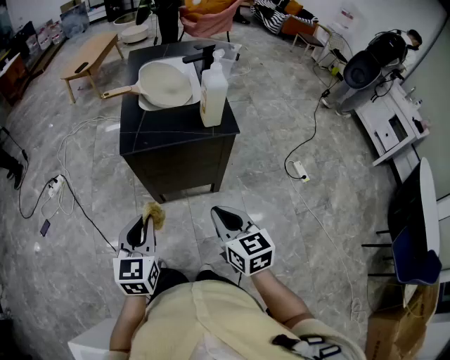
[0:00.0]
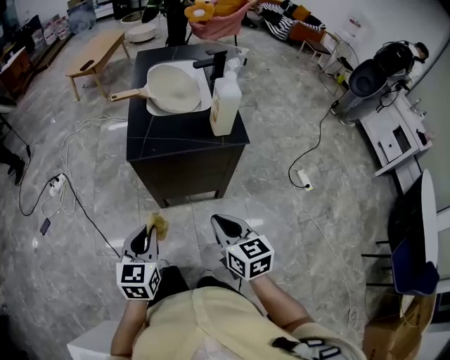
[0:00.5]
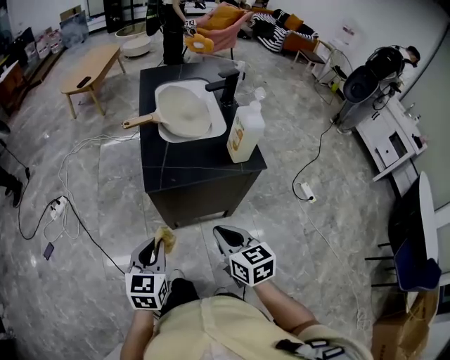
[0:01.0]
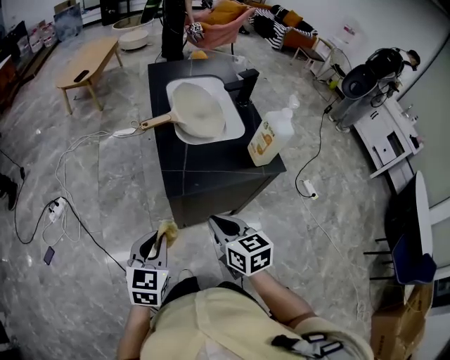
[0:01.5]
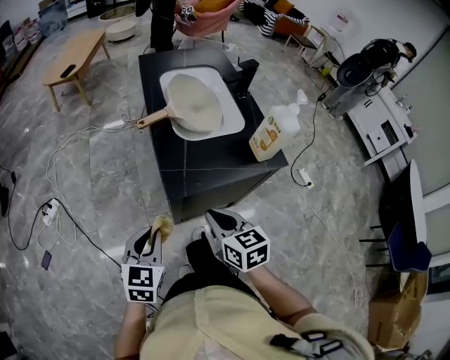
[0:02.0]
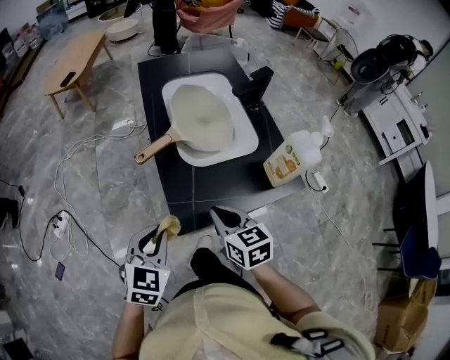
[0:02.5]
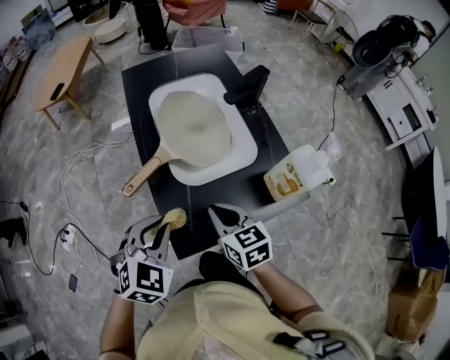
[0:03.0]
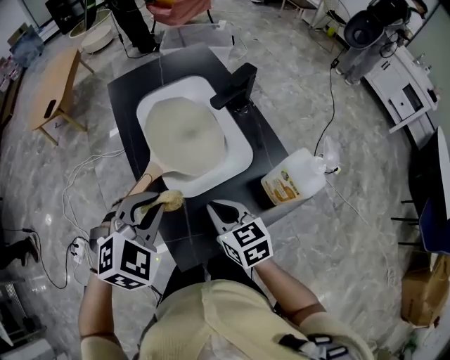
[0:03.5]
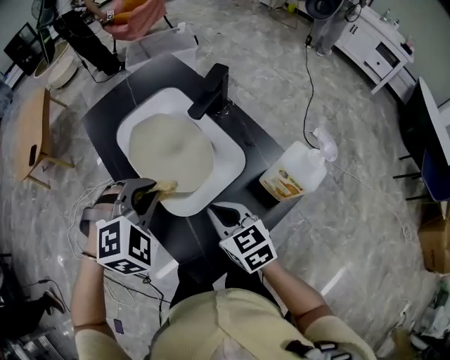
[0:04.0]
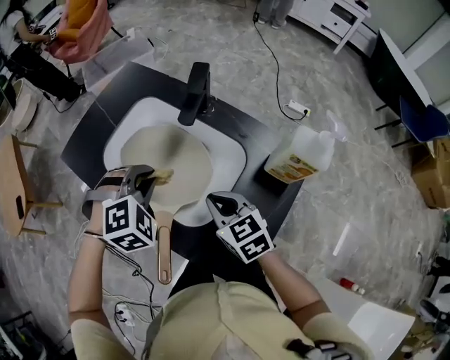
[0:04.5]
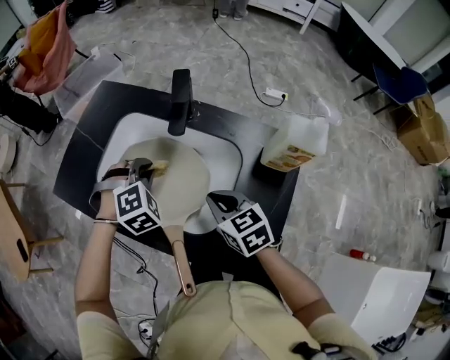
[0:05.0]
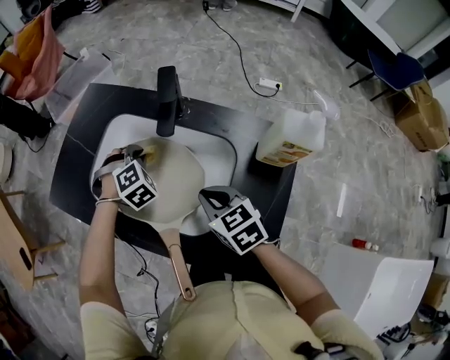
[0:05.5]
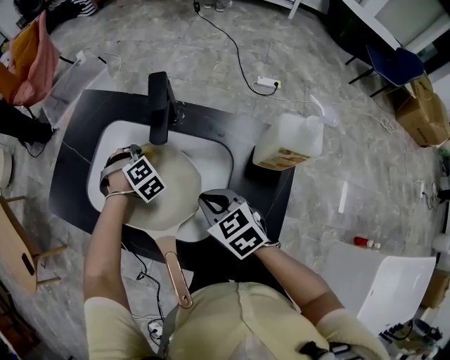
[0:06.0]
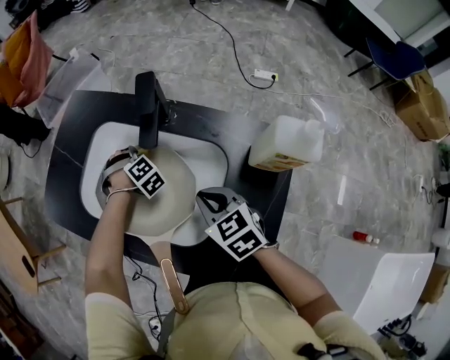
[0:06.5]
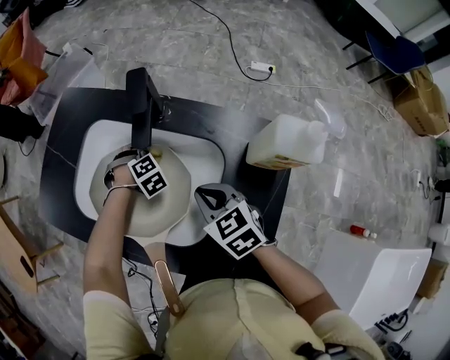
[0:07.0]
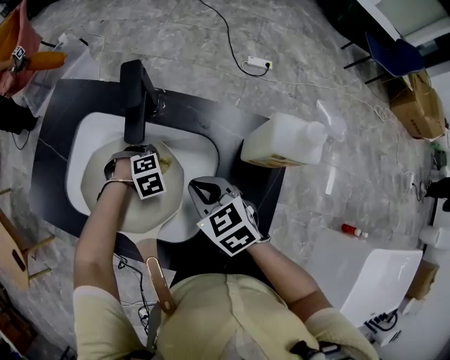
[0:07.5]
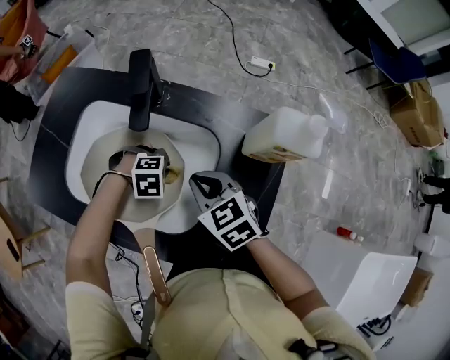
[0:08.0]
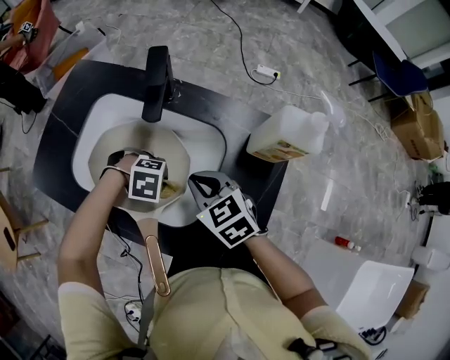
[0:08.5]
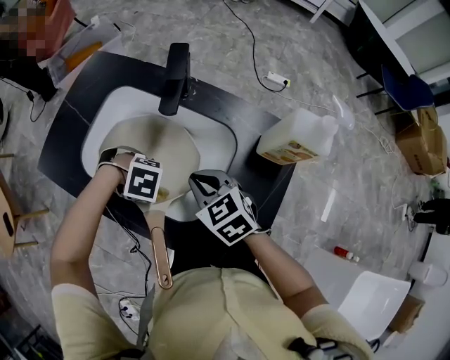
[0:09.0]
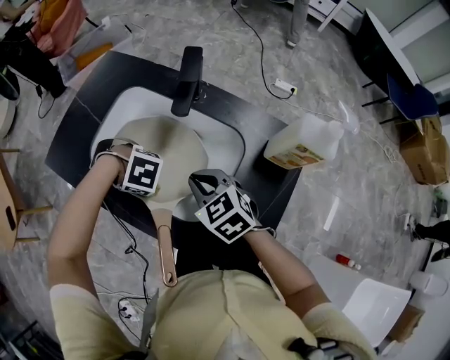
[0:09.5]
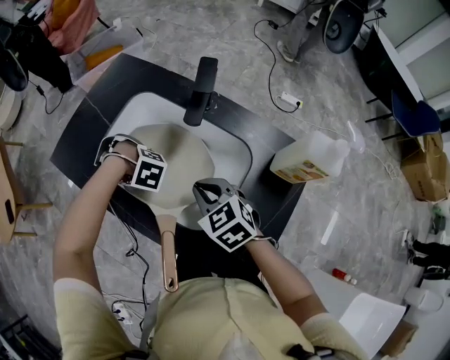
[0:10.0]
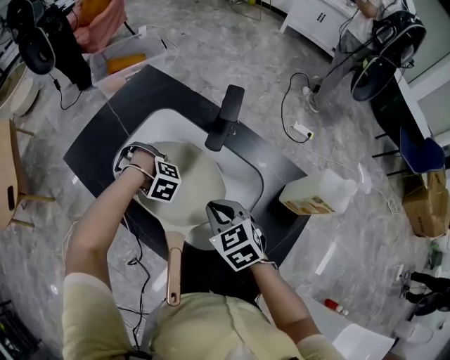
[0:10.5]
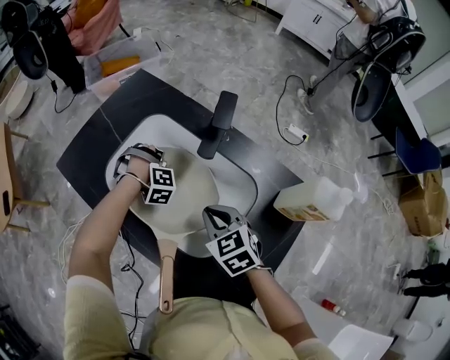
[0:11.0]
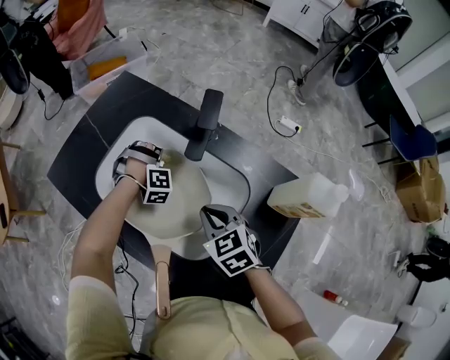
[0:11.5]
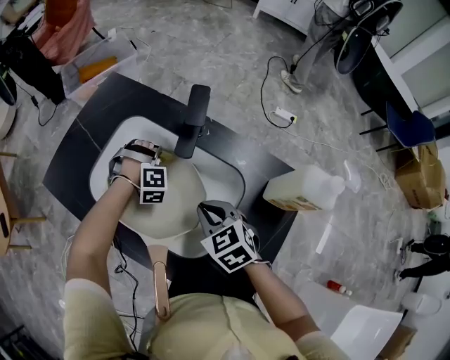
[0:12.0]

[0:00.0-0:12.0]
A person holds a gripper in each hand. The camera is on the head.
0:00.0 to 0:02.0: The right gripper shifts by approximately 30 cm.
0:02.0 to 0:04.0: The right gripper ends up approximately 30 cm from where it was.
0:04.0 to 0:06.0: The right gripper shifts by roughly 10 cm, and changes its angle by some 30 degrees.
0:08.0 to 0:10.0: The right gripper ends up approximately 10 cm from where it was.

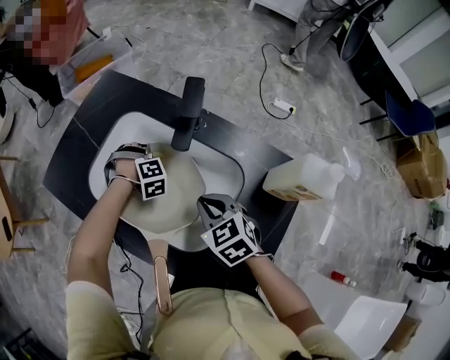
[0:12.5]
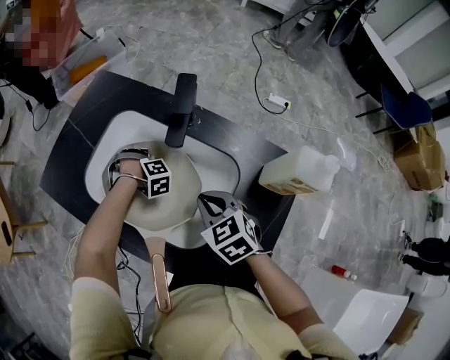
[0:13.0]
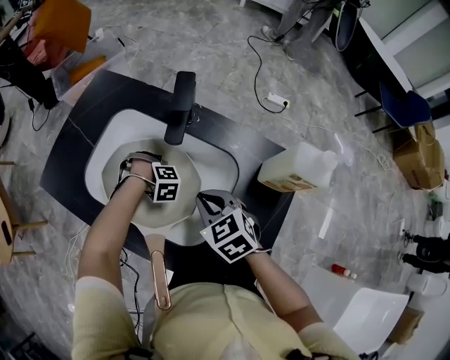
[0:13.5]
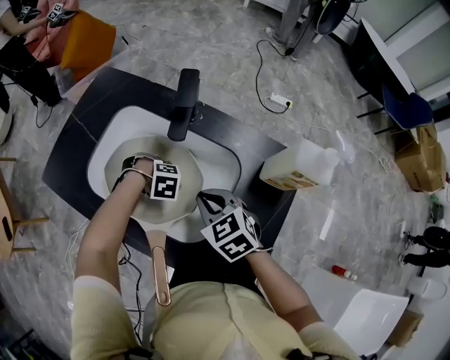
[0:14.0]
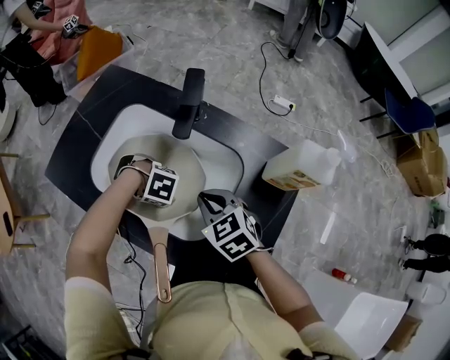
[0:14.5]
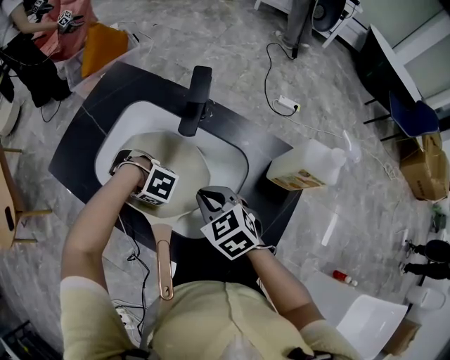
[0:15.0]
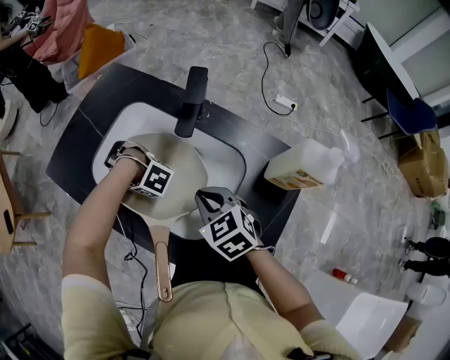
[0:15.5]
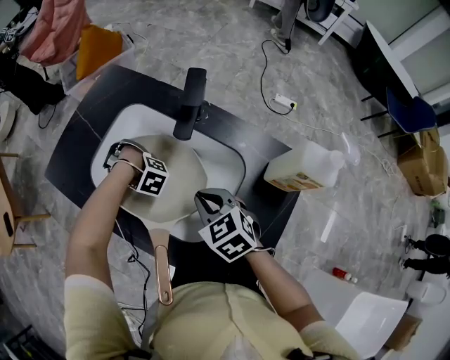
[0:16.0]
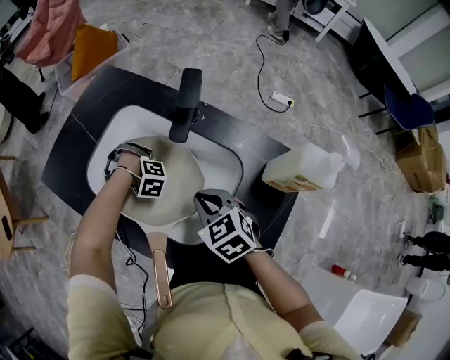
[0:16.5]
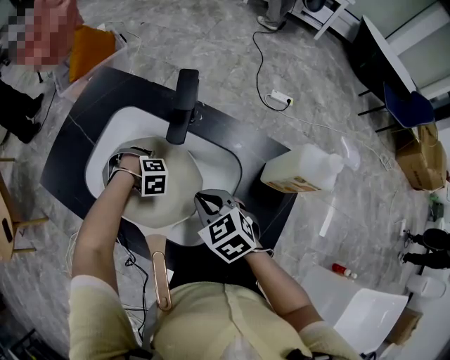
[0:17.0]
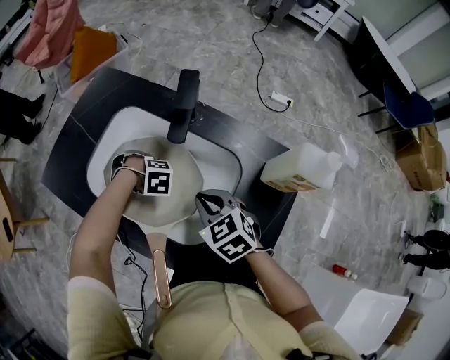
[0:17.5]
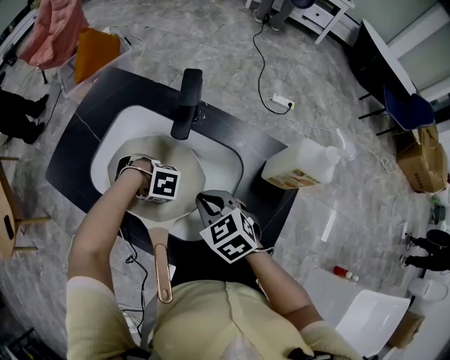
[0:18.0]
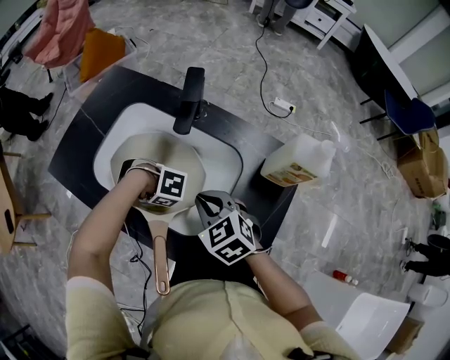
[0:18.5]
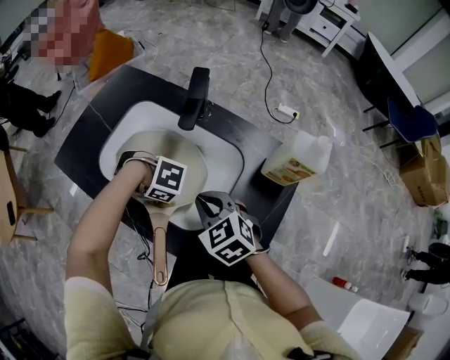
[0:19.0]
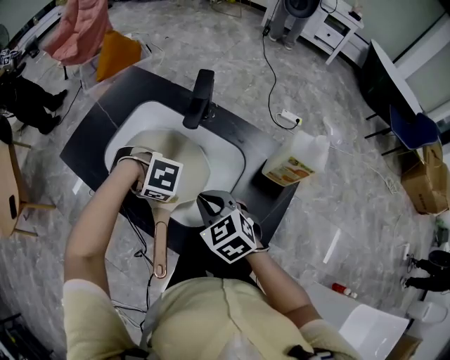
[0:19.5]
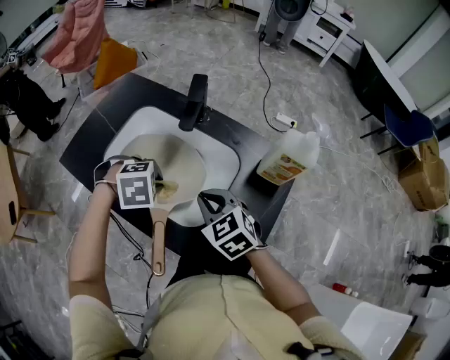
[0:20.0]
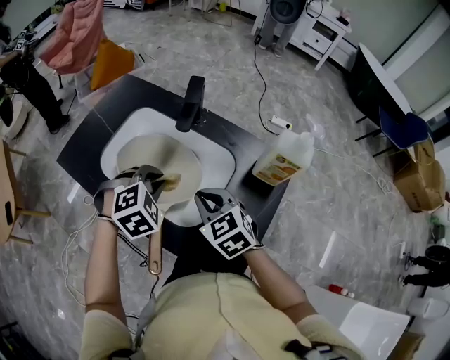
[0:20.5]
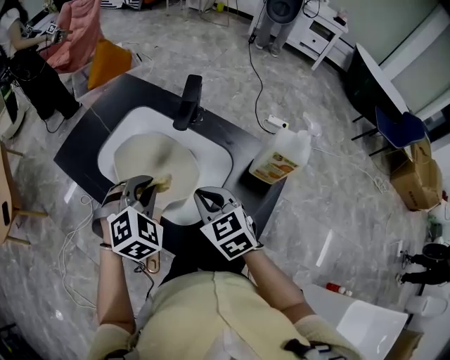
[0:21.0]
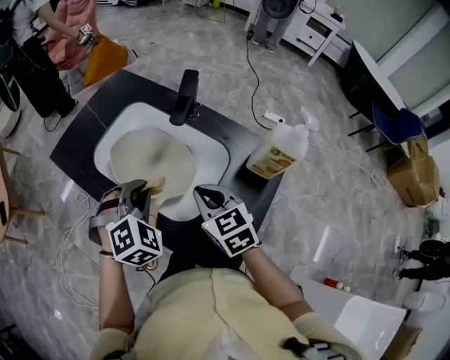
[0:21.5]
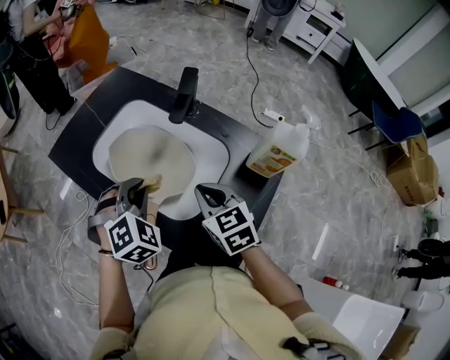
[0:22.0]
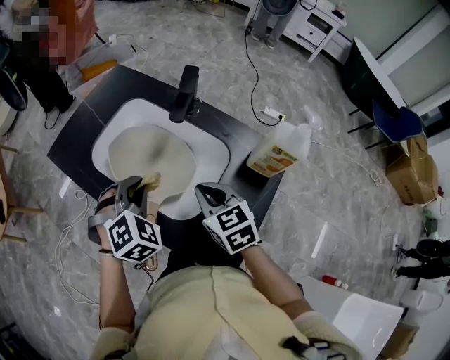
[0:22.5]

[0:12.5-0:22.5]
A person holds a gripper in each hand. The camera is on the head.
0:18.5 to 0:20.5: The right gripper ends up approximately 5 cm from where it was.

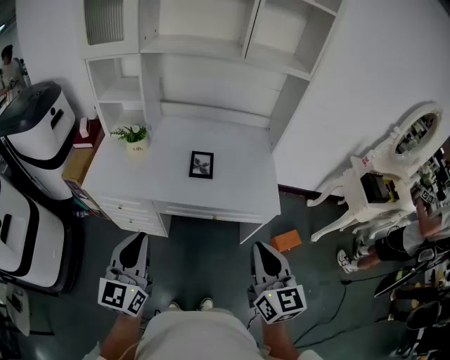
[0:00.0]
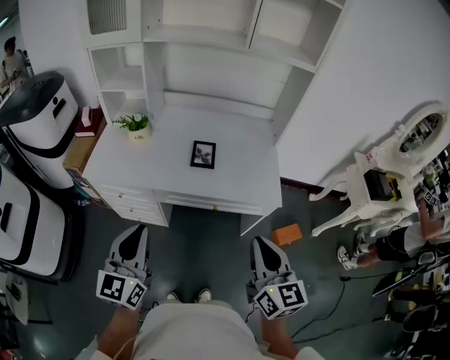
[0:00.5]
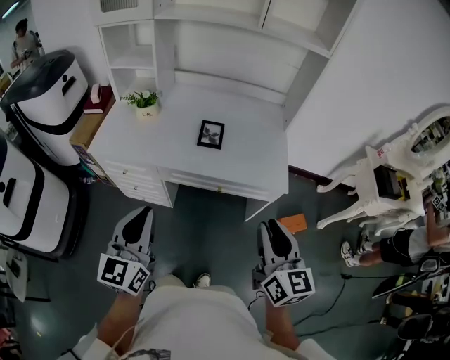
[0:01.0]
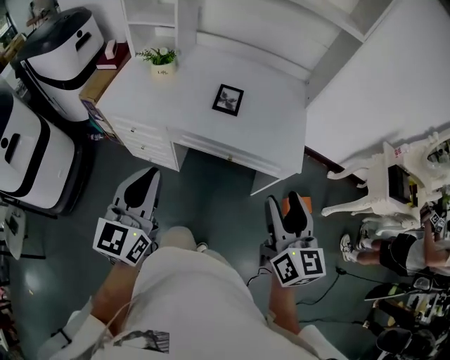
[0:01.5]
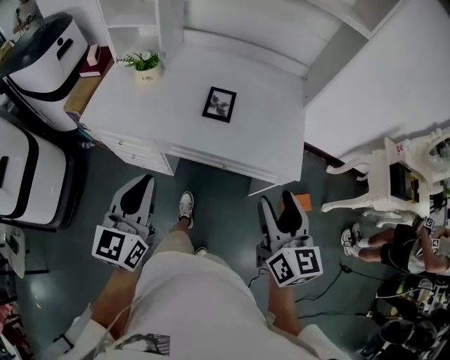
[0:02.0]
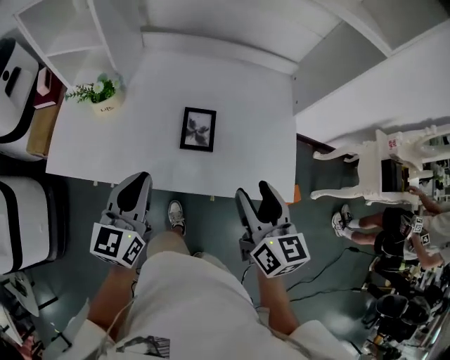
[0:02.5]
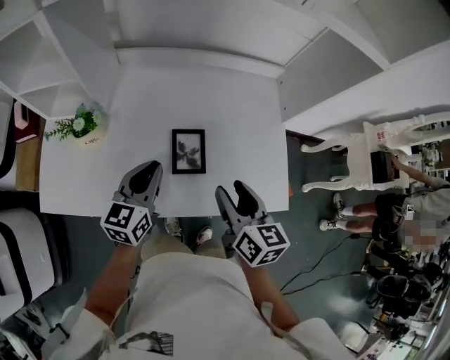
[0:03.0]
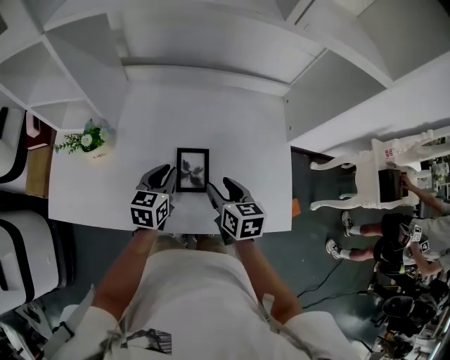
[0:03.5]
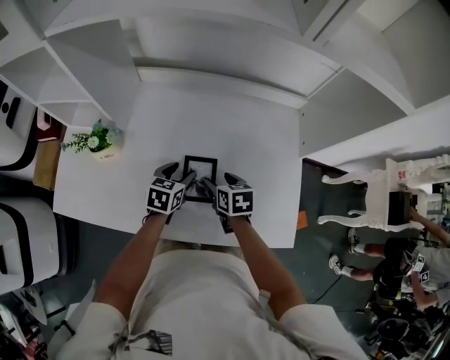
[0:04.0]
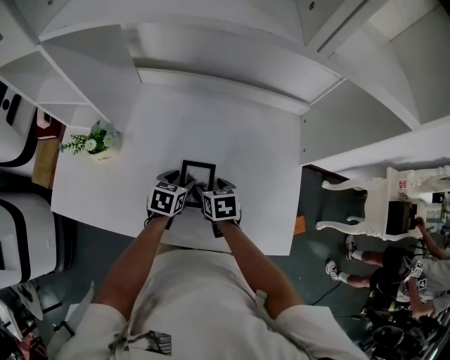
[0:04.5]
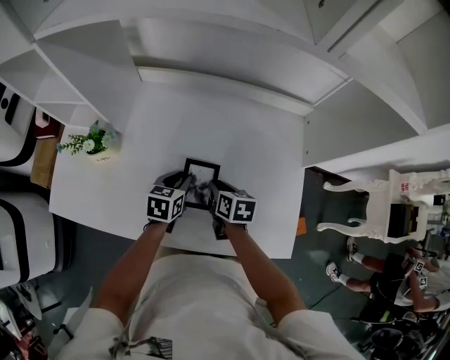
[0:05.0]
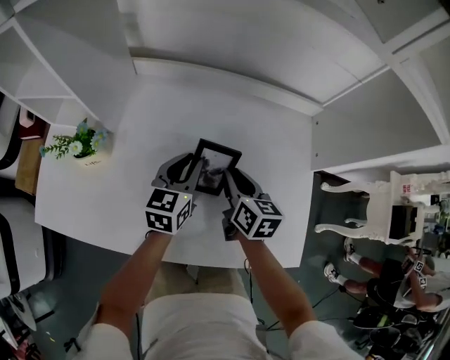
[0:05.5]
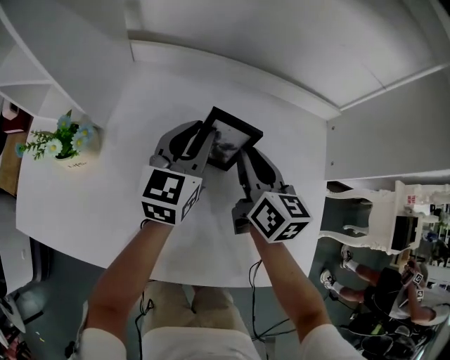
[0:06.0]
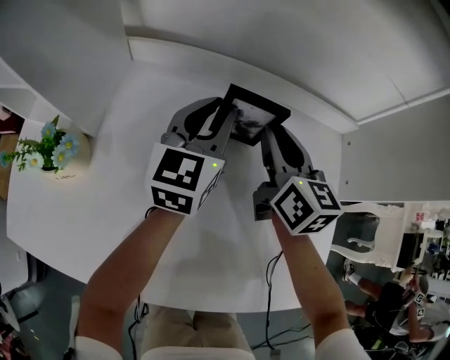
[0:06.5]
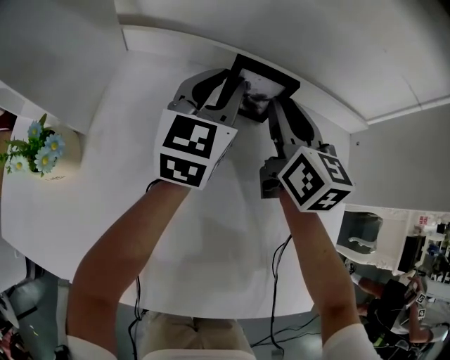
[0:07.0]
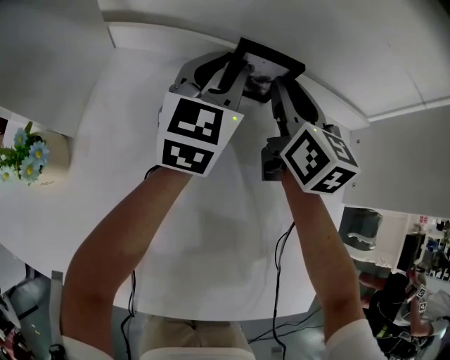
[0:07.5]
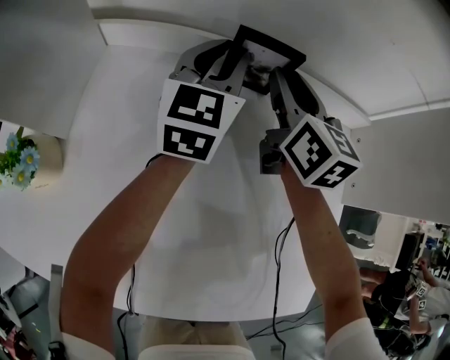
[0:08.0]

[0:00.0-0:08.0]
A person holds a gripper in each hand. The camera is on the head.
0:00.0 to 0:02.0: The left gripper is displaced downward and forward by approximately 10 cm. Meanwhile the right gripper shifts about 10 cm forward and downward, and opens its fingers.
0:02.0 to 0:04.0: The pair of grippers is taken forward, roughly 40 cm. The two grippers go some 25 cm downward. The left gripper tips its fingers downward by approximately 40 degrees, and opens its fingers. The right gripper points its fingers approximately 40 degrees further downward.
0:04.0 to 0:06.0: The two grippers go some 15 cm forward and upward. The left gripper points its fingers roughly 30 degrees further upward, and closes, while the right gripper turns by approximately 30 degrees, and closes up.
0:06.0 to 0:08.0: Both grippers move forward, roughly 20 cm.
